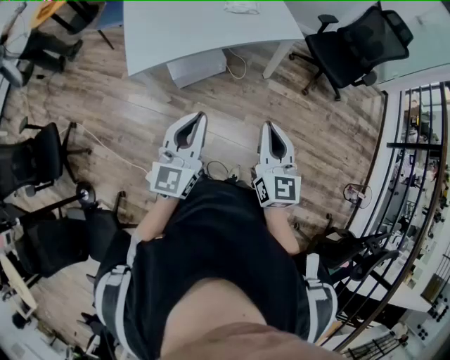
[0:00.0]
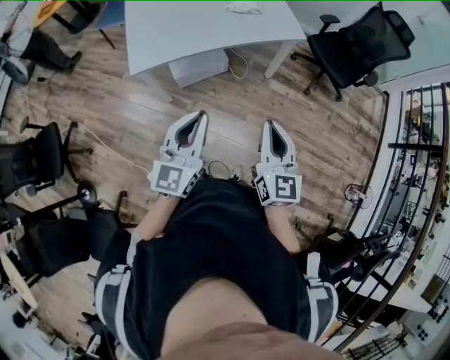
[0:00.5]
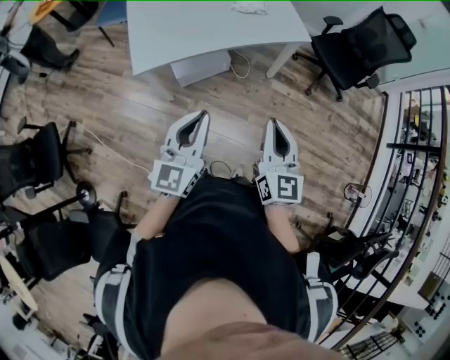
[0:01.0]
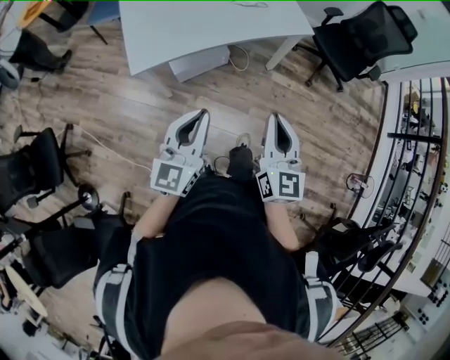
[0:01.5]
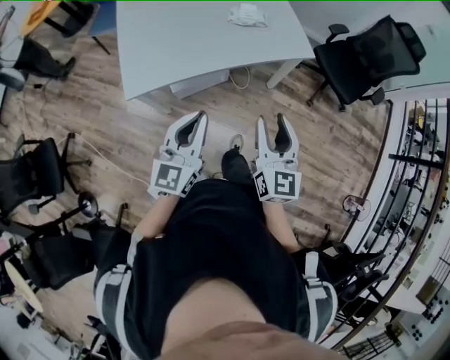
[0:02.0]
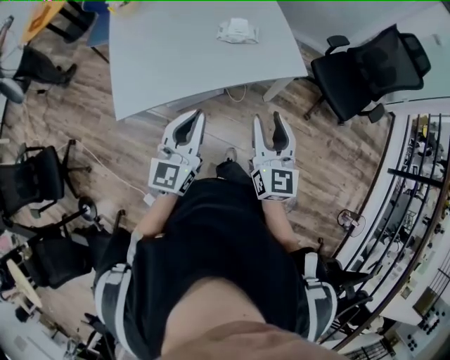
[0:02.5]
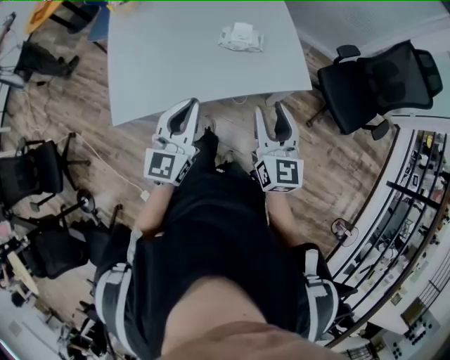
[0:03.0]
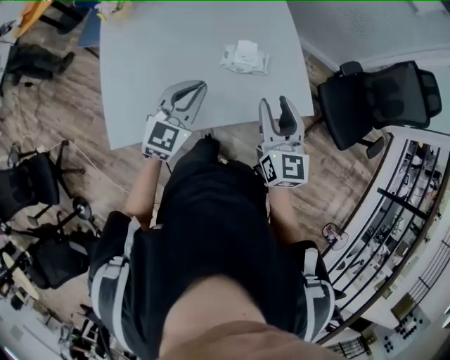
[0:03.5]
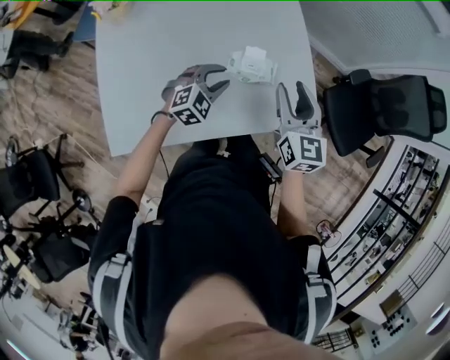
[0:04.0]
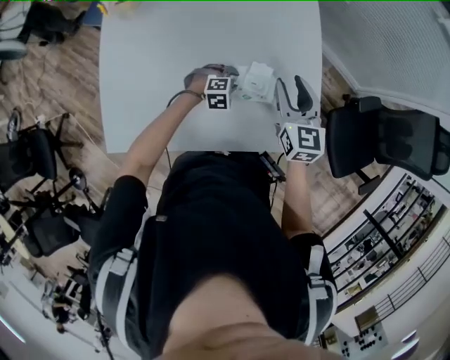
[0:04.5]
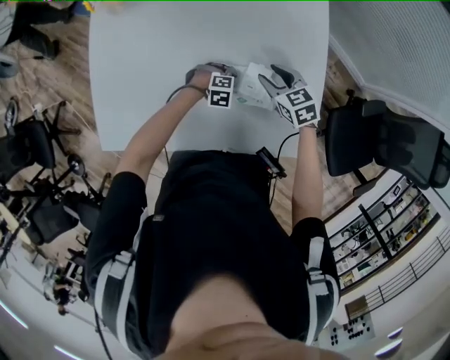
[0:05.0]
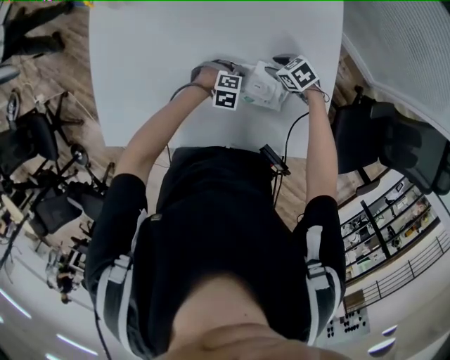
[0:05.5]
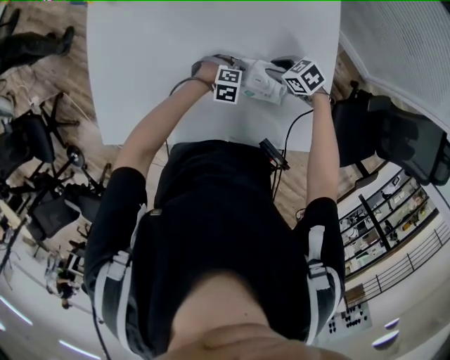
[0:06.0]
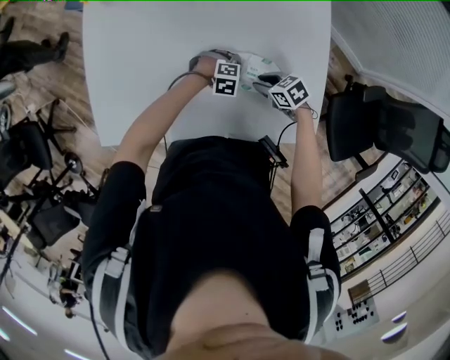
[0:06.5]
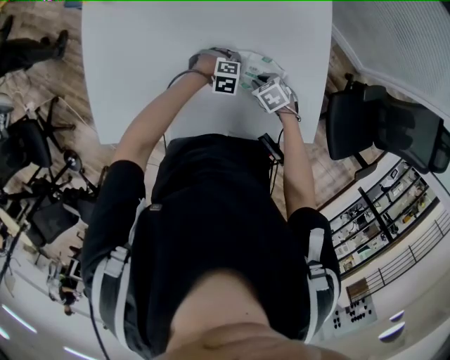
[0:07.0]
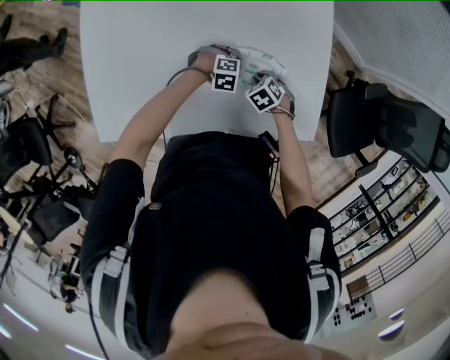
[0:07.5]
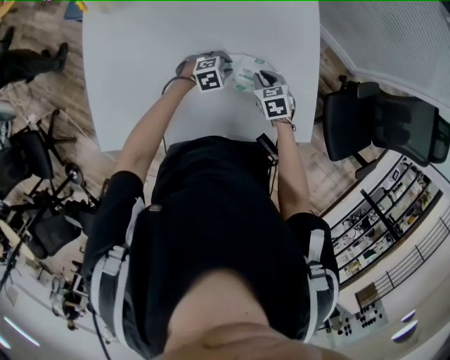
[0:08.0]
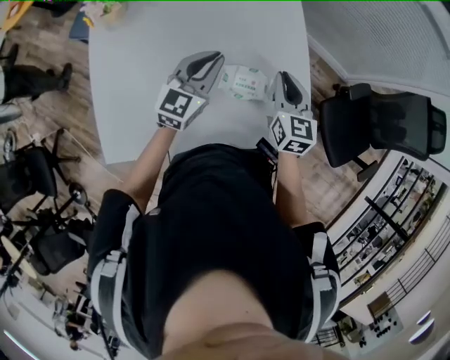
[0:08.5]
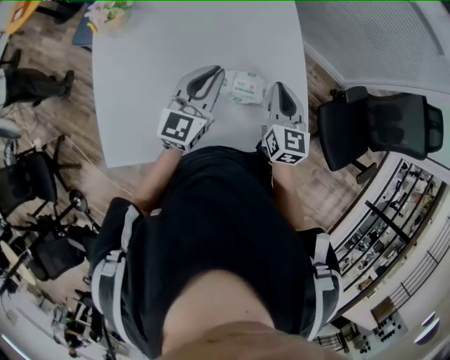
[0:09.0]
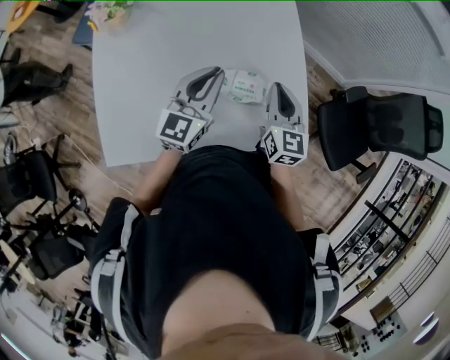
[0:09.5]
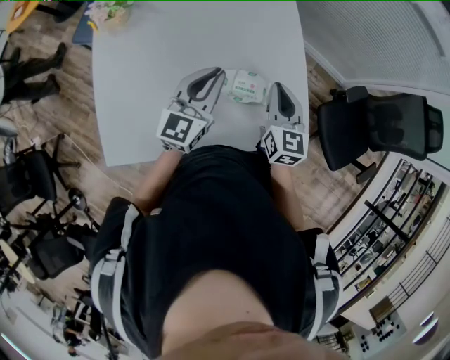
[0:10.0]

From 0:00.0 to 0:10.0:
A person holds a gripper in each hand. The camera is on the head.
From 0:00.0 to 0:02.0: The two grippers go approximately 20 cm forward. The right gripper opens up.
From 0:02.0 to 0:04.0: The pair of grippers is taken forward, some 60 cm. The left gripper points its fingers roughly 40 degrees further downward, and opens up.
From 0:04.0 to 0:06.0: The two grippers go approximately 30 cm downward. The left gripper swivels some 40 degrees. Meanwhile the right gripper tips its fingers downward by approximately 40 degrees.
From 0:06.0 to 0:08.0: The right gripper ends up about 5 cm from where it was, and turns by approximately 40 degrees; the left gripper is displaced upward by about 5 cm.
From 0:08.0 to 0:10.0: Both grippers move upward, some 30 cm. The left gripper tilts its fingers about 50 degrees upward. The right gripper tips its fingers upward by approximately 40 degrees.

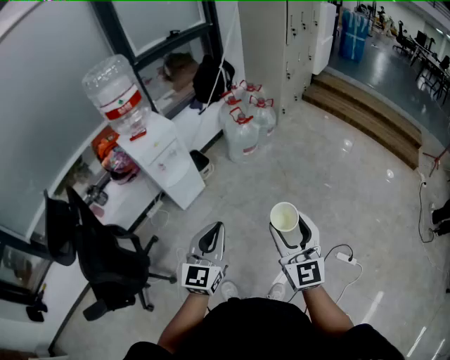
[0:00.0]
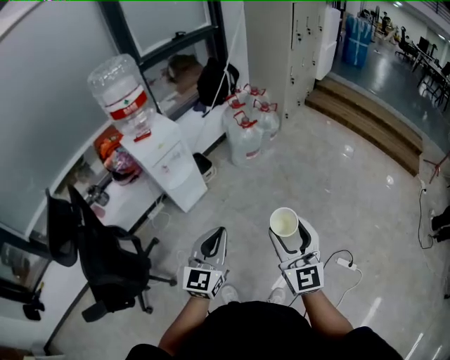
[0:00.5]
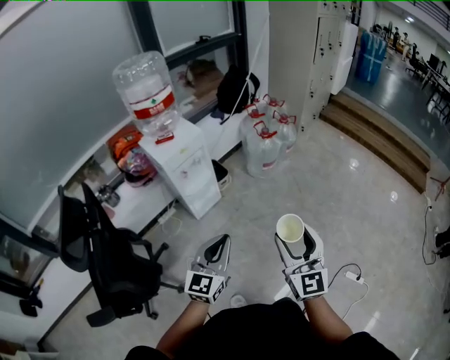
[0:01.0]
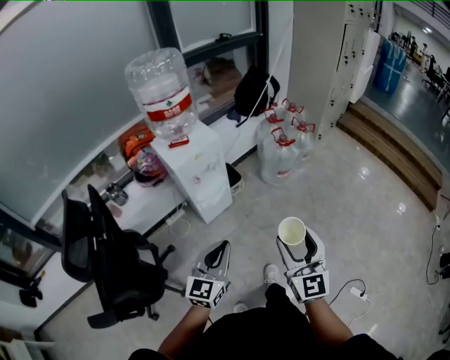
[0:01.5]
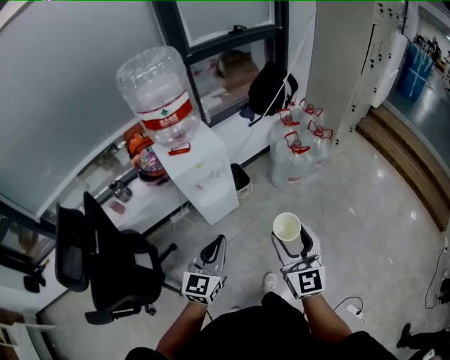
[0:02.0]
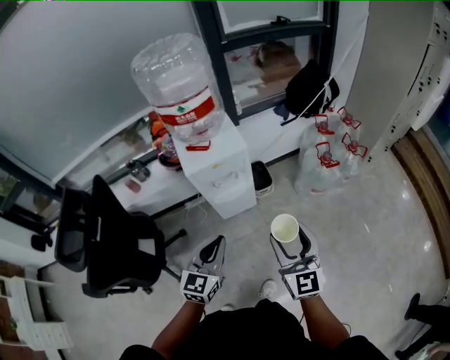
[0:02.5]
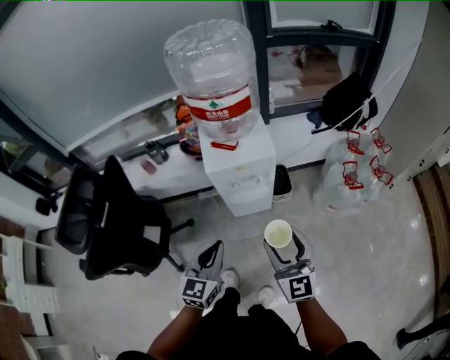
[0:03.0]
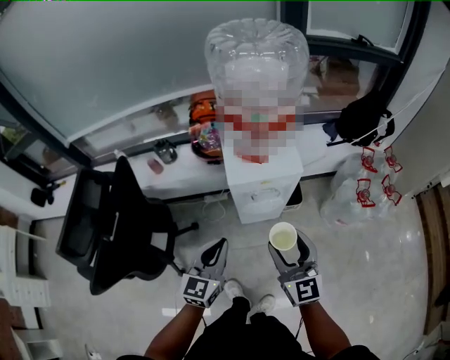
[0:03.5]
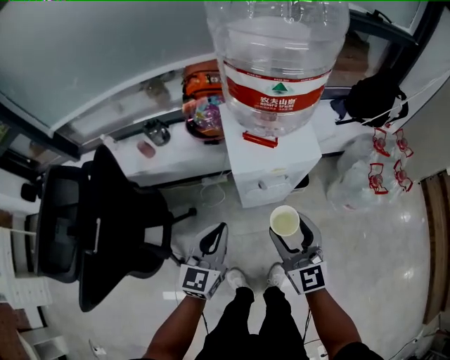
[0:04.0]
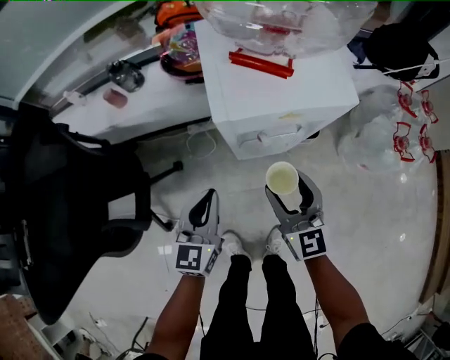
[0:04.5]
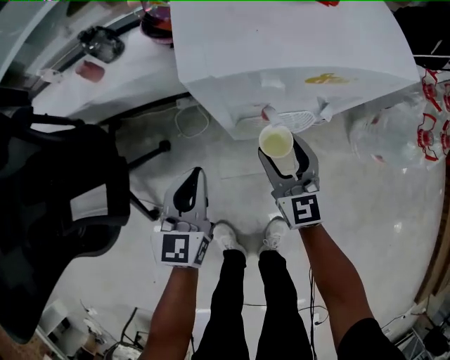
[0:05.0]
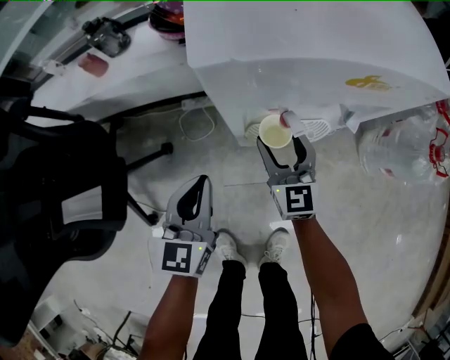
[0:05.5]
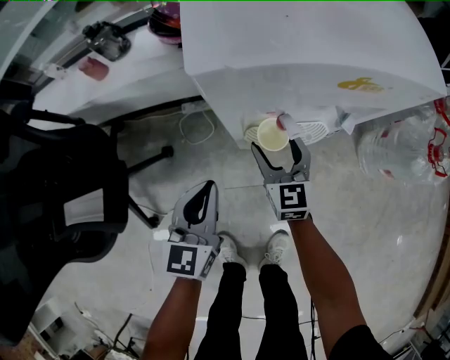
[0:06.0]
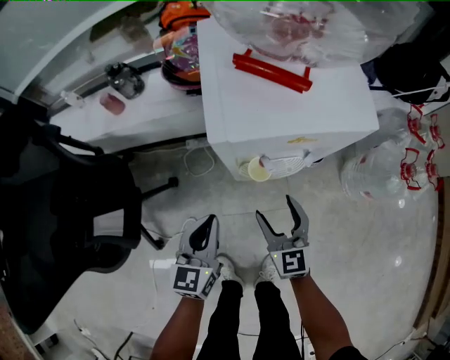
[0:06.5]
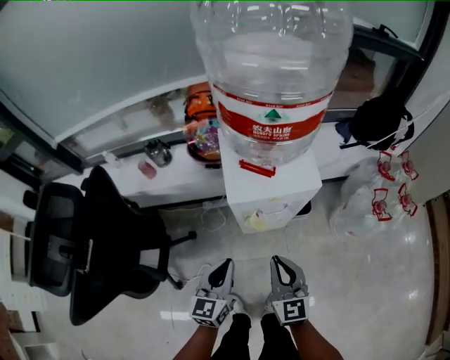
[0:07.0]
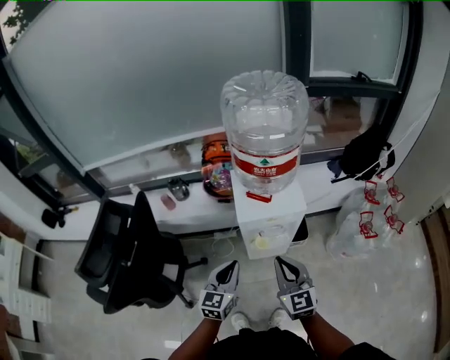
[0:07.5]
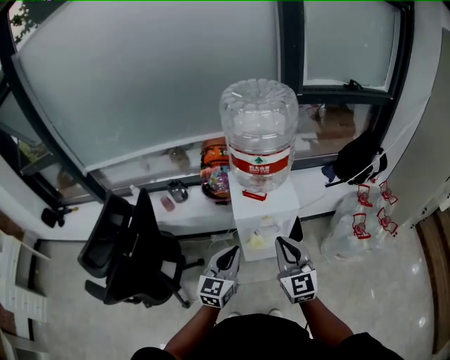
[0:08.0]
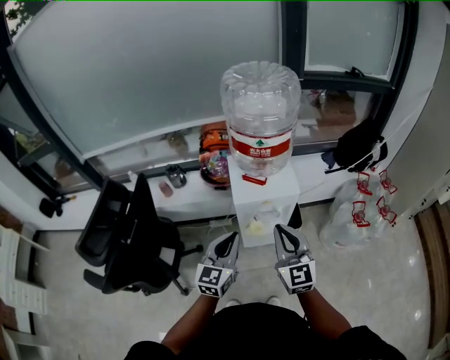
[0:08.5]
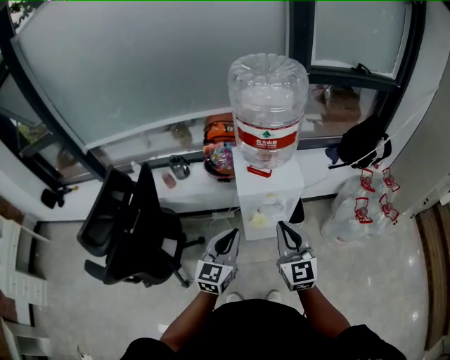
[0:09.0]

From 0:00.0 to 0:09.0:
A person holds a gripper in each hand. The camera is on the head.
From 0:00.0 to 0:02.0: The two grippers go approximately 25 cm forward and to the left.
From 0:02.0 to 0:04.5: The left gripper moves approximately 35 cm, and swivels about 30 degrees; the right gripper changes place by roughly 40 cm, and swivels some 30 degrees.
From 0:04.5 to 0:07.0: The right gripper goes approximately 5 cm backward, goes downward and returns, about 25 cm each way, and closes its fingers. Meanwhile the left gripper heads to the right and backward, covering roughly 10 cm, and travels downward and back again, some 15 cm each way.
From 0:07.0 to 0:09.0: Both grippers move upward, approximately 15 cm.

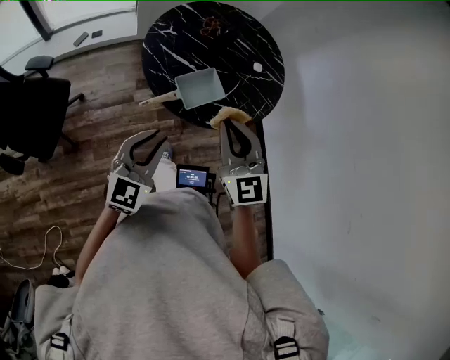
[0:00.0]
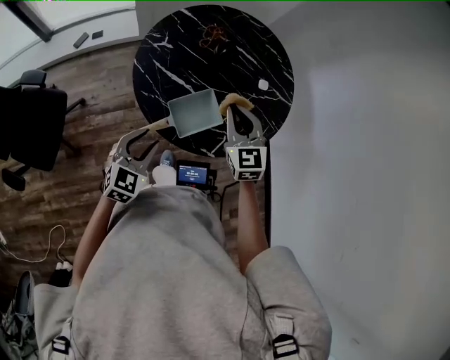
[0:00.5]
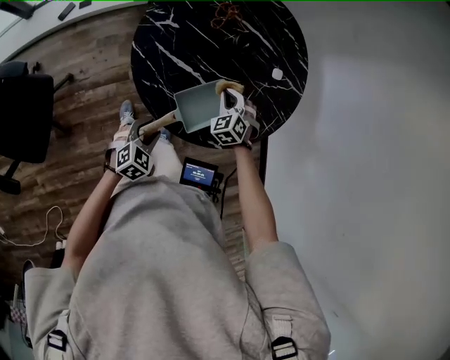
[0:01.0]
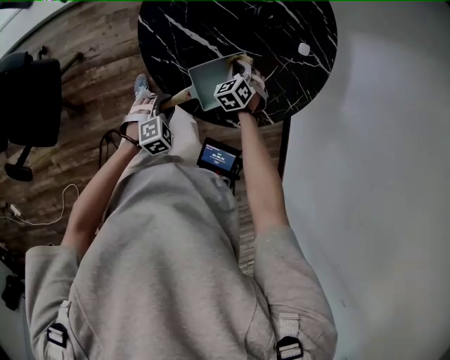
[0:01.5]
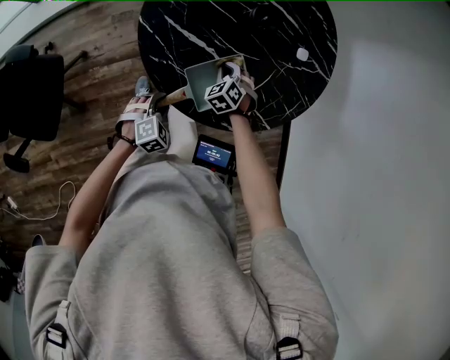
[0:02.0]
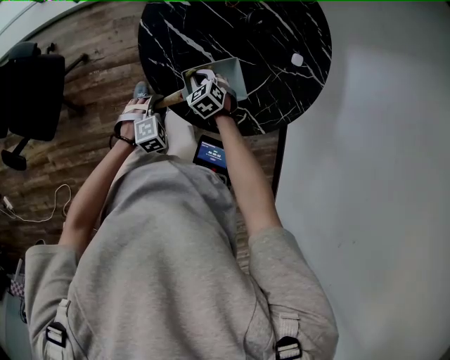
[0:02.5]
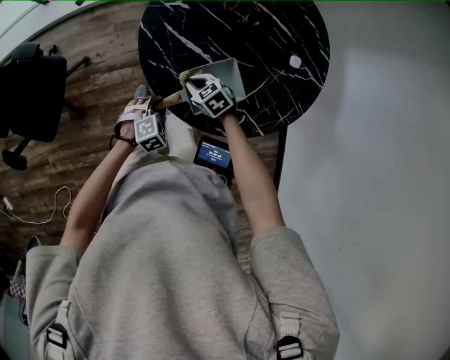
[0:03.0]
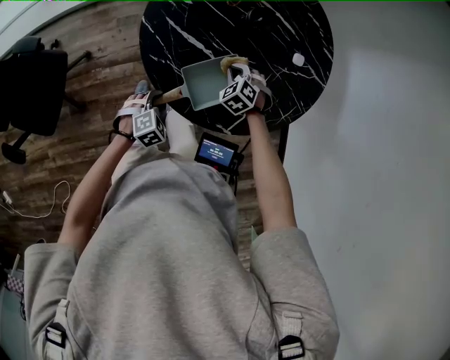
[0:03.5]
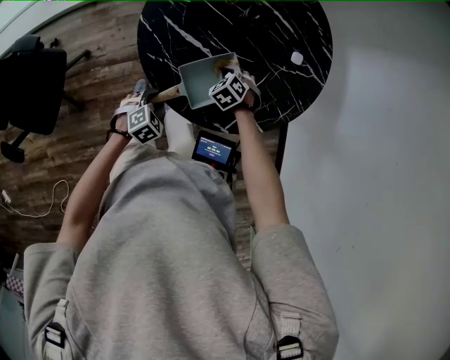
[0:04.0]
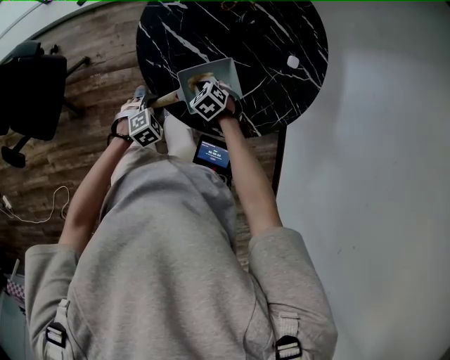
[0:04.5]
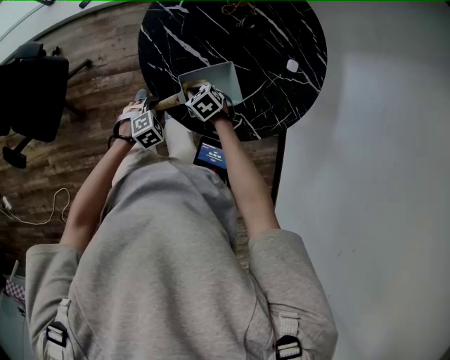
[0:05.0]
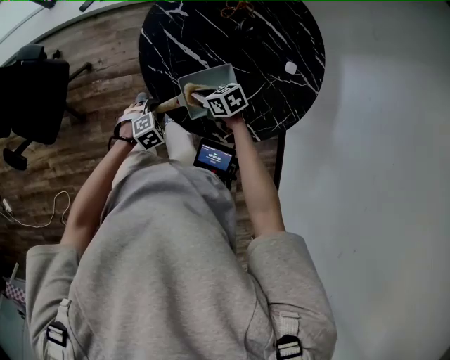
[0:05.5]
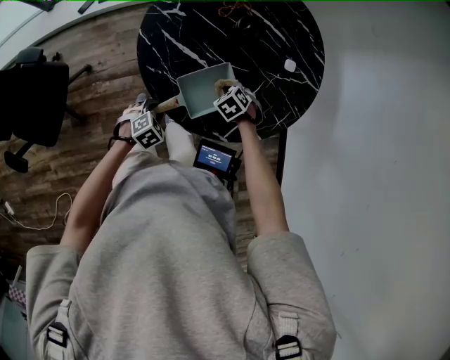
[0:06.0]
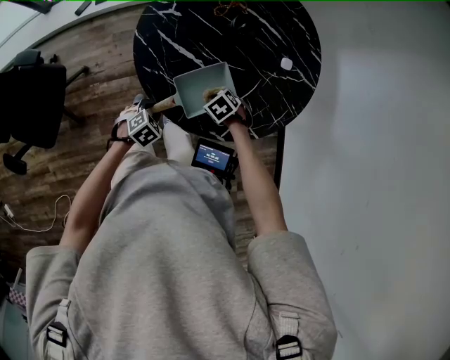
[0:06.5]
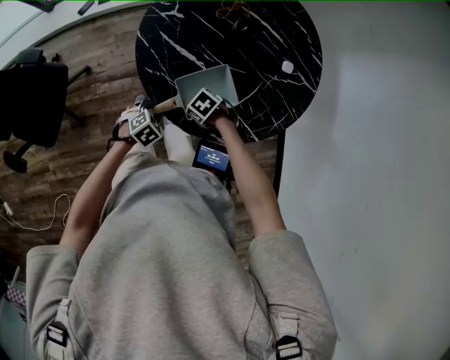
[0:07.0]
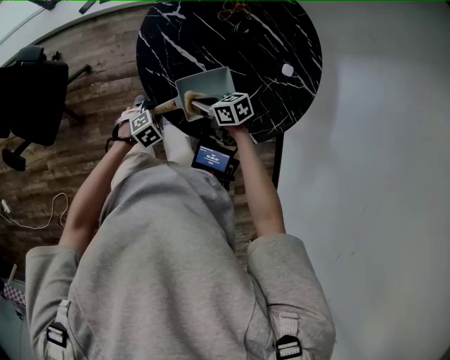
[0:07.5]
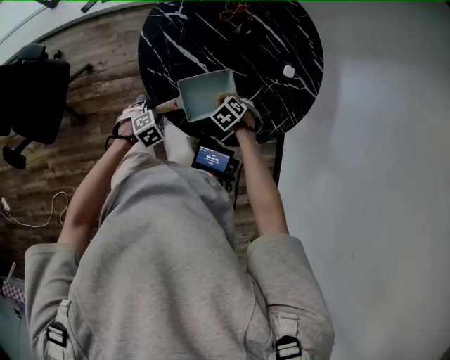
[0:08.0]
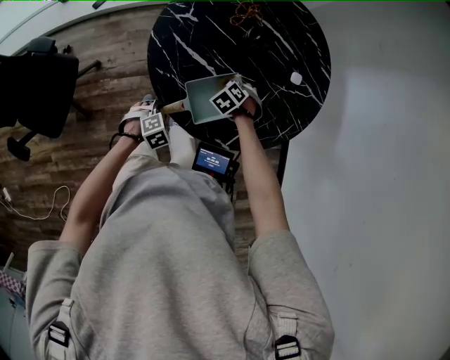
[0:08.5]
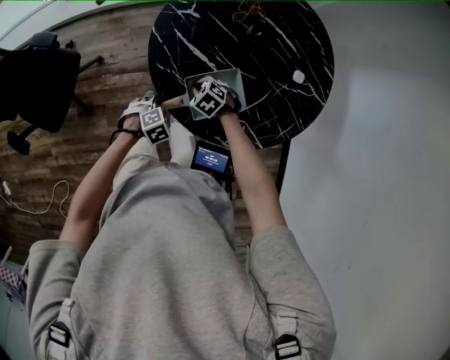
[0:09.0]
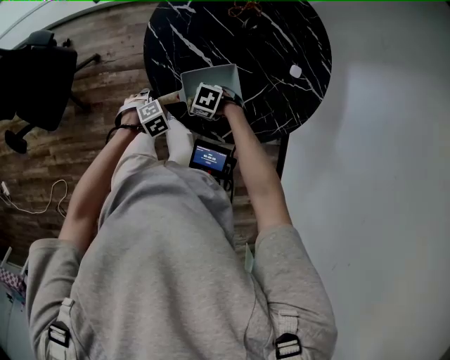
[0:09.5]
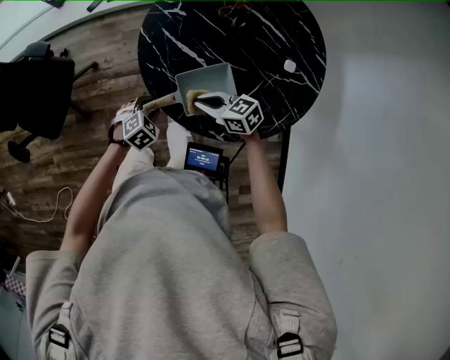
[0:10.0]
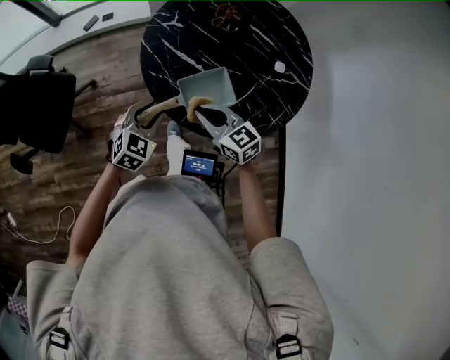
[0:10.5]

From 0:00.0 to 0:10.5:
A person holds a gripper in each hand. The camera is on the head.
From 0:00.0 to 0:02.0: The two grippers go roughly 50 cm downward and forward. The left gripper points its fingers roughly 50 degrees further downward. The right gripper points its fingers about 50 degrees further downward.
From 0:04.0 to 0:06.5: The right gripper changes its angle by approximately 20 degrees.
From 0:06.5 to 0:08.5: The right gripper moves approximately 10 cm.
From 0:08.5 to 0:10.5: The grippers both shift upward by about 20 cm. The left gripper angles its fingers upward, by roughly 30 degrees. The right gripper points its fingers roughly 50 degrees further upward.
